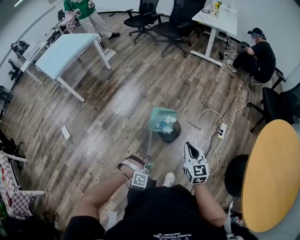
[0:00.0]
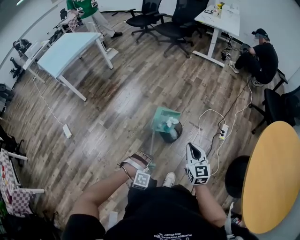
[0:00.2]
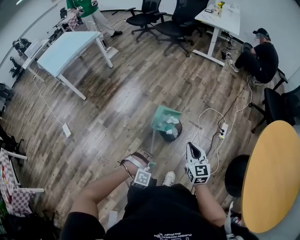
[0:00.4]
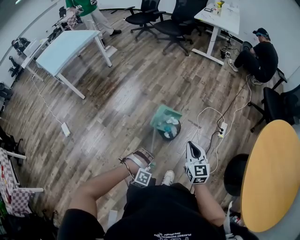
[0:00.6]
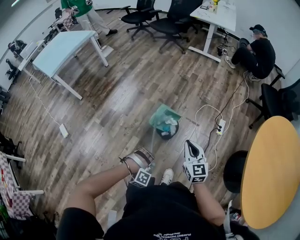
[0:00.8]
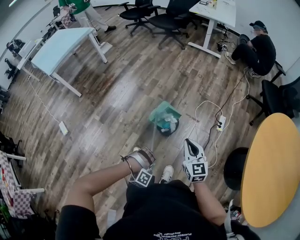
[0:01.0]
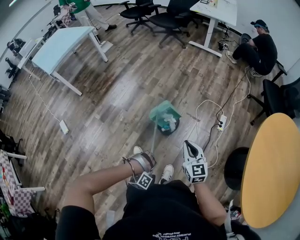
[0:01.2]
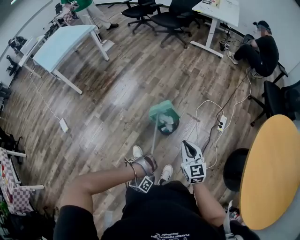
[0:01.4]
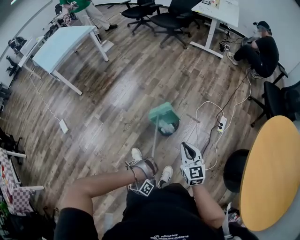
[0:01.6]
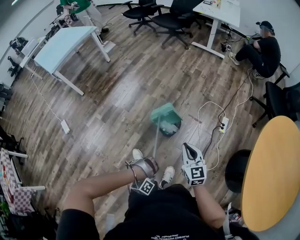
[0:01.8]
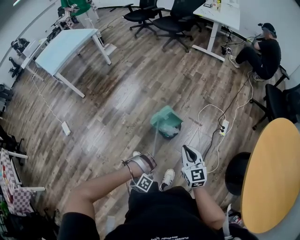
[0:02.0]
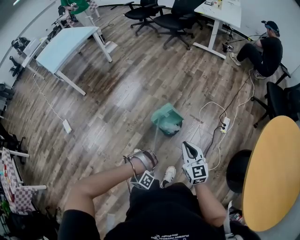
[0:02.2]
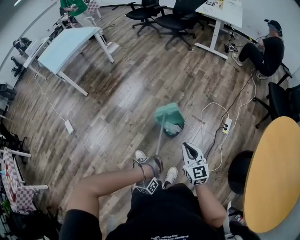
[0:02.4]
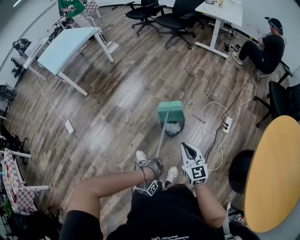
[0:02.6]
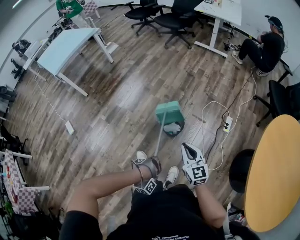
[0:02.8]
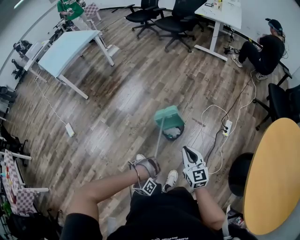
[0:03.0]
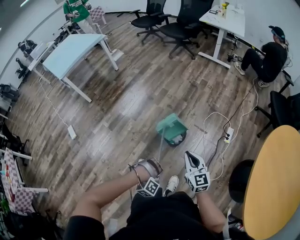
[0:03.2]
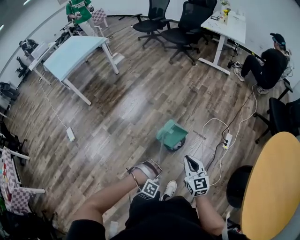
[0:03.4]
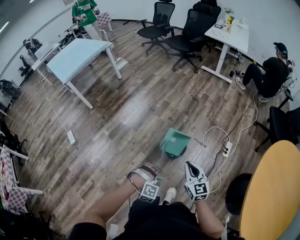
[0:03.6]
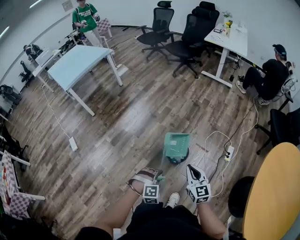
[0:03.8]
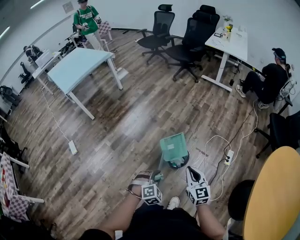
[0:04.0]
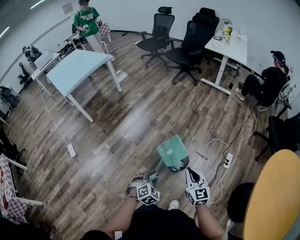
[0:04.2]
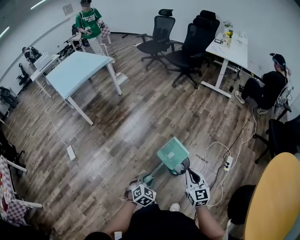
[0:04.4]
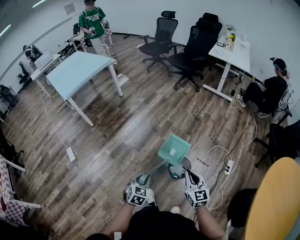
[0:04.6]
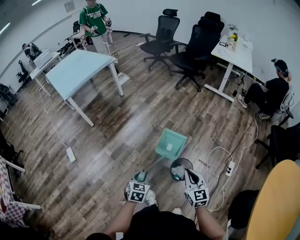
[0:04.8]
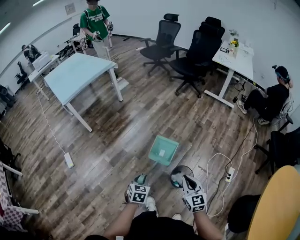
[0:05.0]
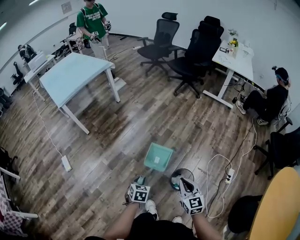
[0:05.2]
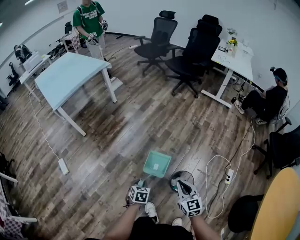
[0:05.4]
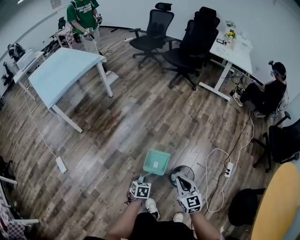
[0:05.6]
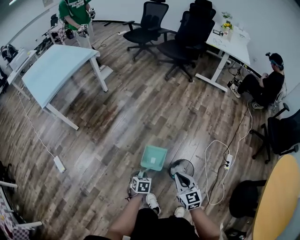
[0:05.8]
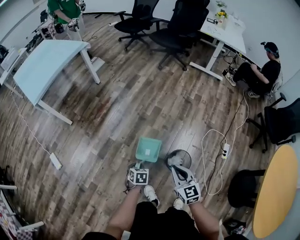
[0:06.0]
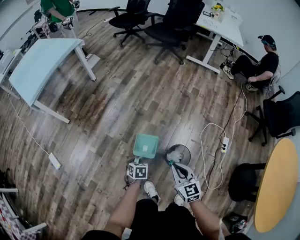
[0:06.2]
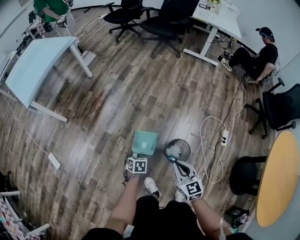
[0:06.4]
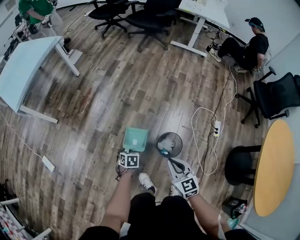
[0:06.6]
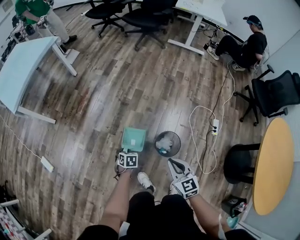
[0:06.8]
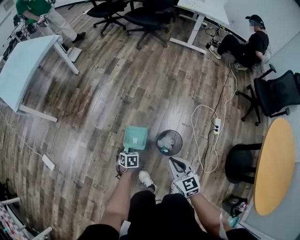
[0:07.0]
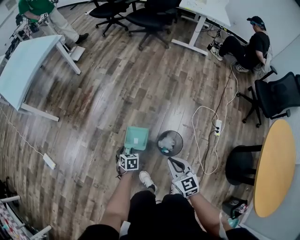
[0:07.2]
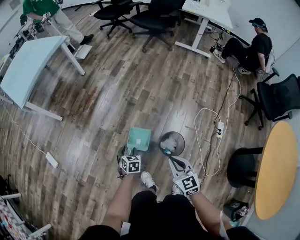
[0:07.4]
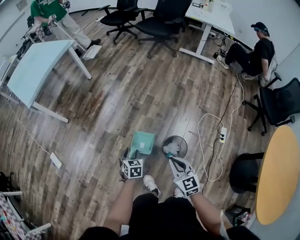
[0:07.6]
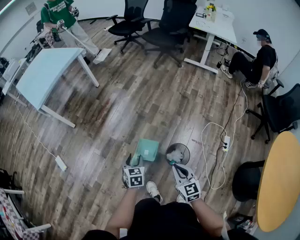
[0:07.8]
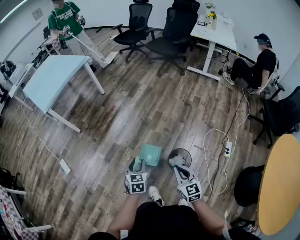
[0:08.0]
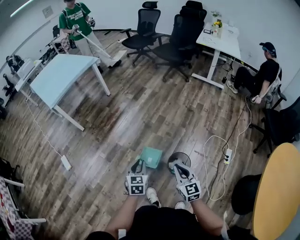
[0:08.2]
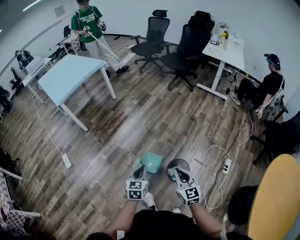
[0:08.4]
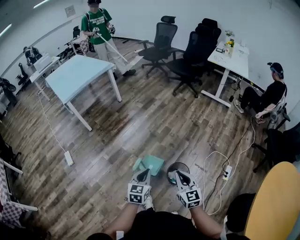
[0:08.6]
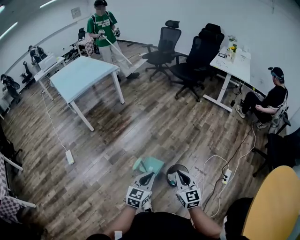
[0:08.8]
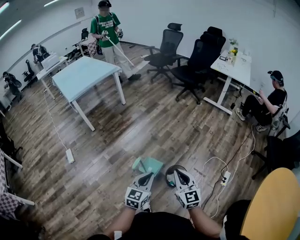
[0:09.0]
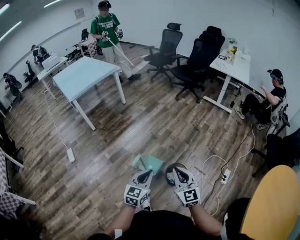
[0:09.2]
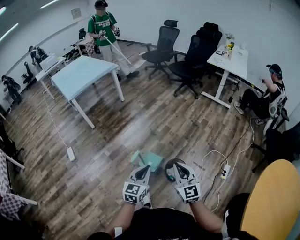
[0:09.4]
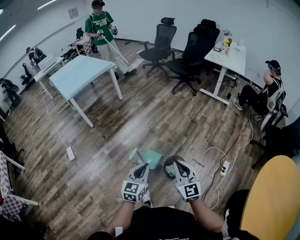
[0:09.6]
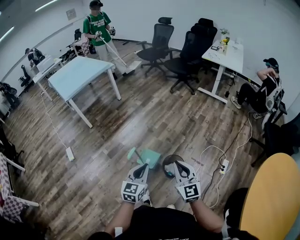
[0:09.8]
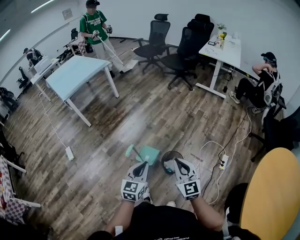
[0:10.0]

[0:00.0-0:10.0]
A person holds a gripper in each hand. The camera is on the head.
0:00.0 to 0:01.4: The left gripper moves downward and backward, roughly 10 cm, and rotates around the line of its fingers by about 40 degrees, clockwise from behind.
0:01.4 to 0:02.8: The grippers stay close to where they were, moving slightly.
0:02.8 to 0:04.2: The left gripper moves forward and upward, about 20 cm, and twists about 110 degrees counterclockwise, seen from behind, while the right gripper shifts about 10 cm forward.
0:04.2 to 0:05.8: Both grippers travel together forward, to the left and downward, approximately 30 cm. The left gripper rolls counterclockwise, seen from behind, by some 50 degrees.
0:05.8 to 0:07.2: The left gripper heads downward, covering about 5 cm, and opens up. Meanwhile the right gripper changes place by some 5 cm.
0:07.2 to 0:08.6: The right gripper travels upward and backward by roughly 15 cm; the left gripper travels upward and backward by approximately 35 cm, tilts its fingers some 40 degrees upward, and closes its fingers.
0:08.6 to 0:10.0: The right gripper heads upward, backward and to the right, covering roughly 10 cm, while the left gripper moves backward, upward and to the right, about 15 cm.

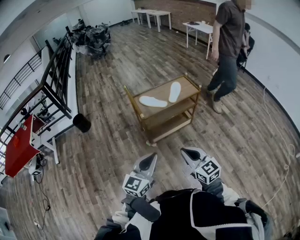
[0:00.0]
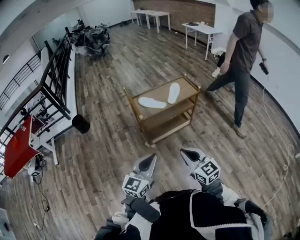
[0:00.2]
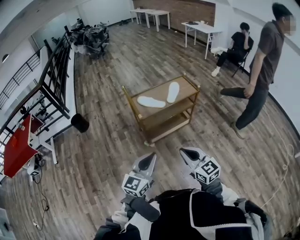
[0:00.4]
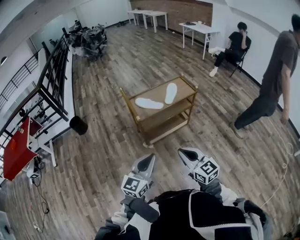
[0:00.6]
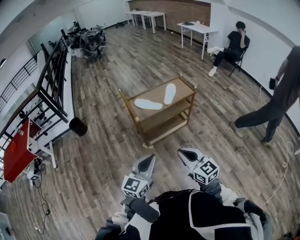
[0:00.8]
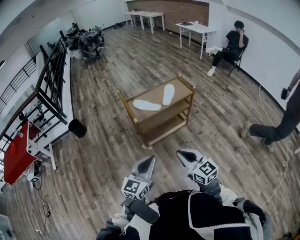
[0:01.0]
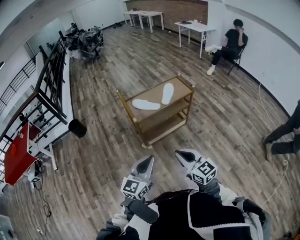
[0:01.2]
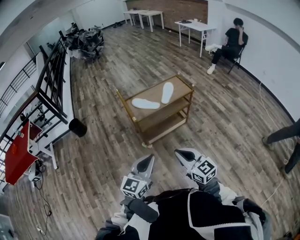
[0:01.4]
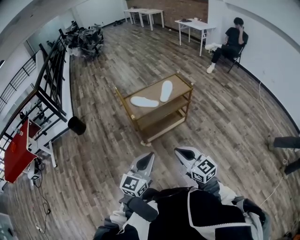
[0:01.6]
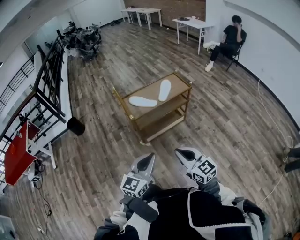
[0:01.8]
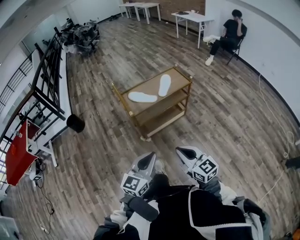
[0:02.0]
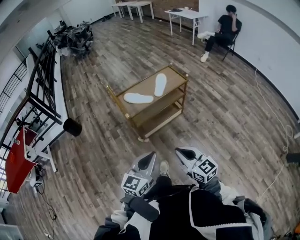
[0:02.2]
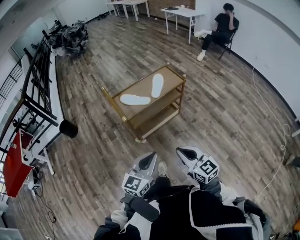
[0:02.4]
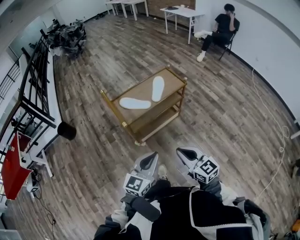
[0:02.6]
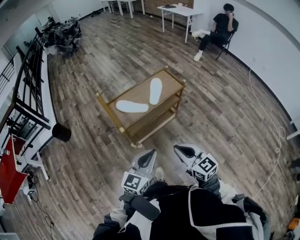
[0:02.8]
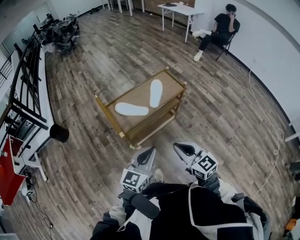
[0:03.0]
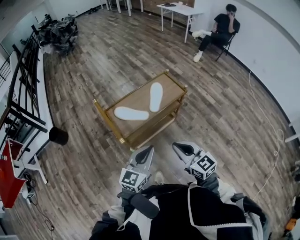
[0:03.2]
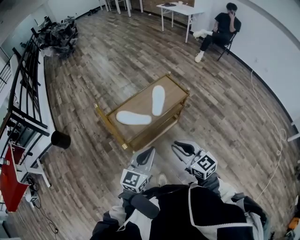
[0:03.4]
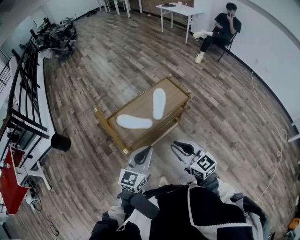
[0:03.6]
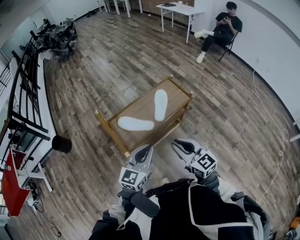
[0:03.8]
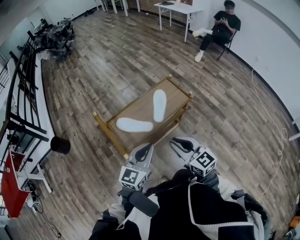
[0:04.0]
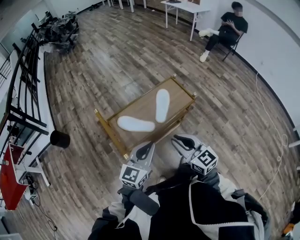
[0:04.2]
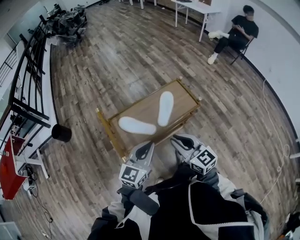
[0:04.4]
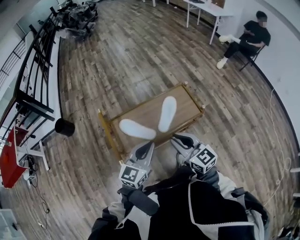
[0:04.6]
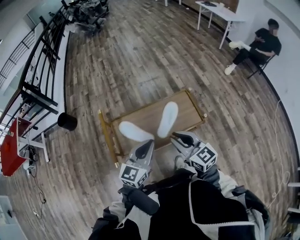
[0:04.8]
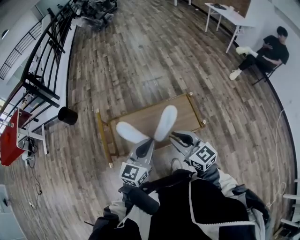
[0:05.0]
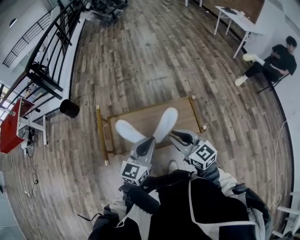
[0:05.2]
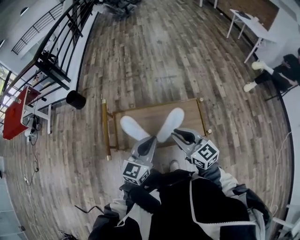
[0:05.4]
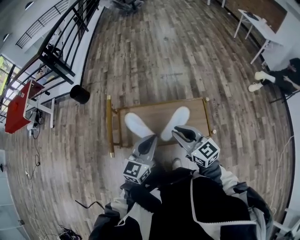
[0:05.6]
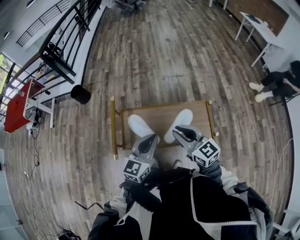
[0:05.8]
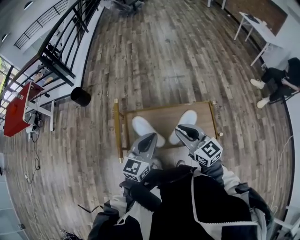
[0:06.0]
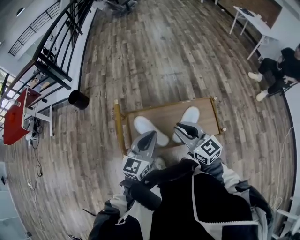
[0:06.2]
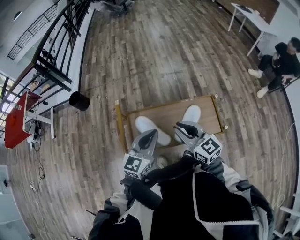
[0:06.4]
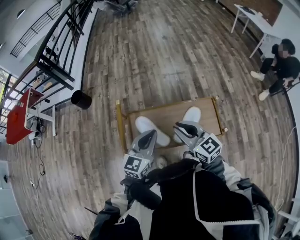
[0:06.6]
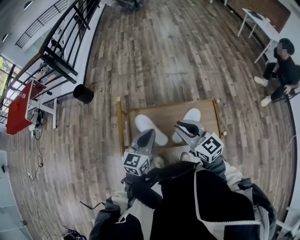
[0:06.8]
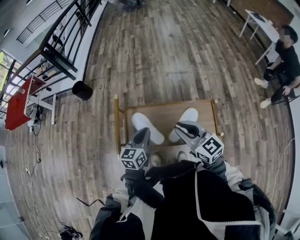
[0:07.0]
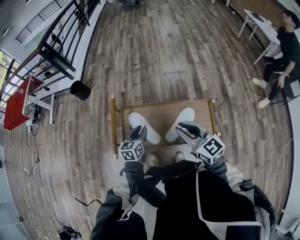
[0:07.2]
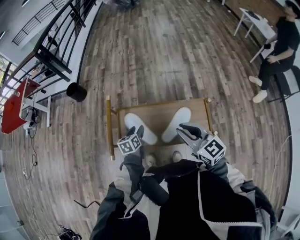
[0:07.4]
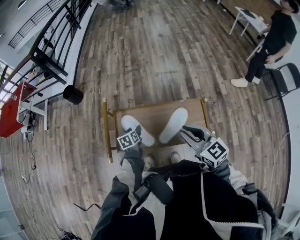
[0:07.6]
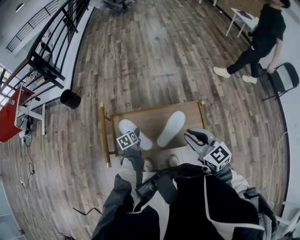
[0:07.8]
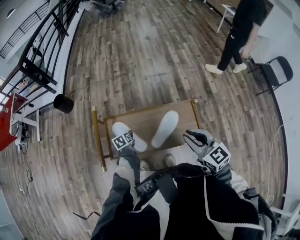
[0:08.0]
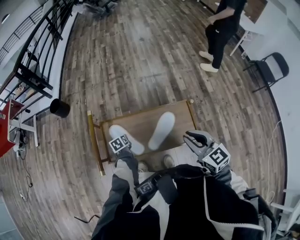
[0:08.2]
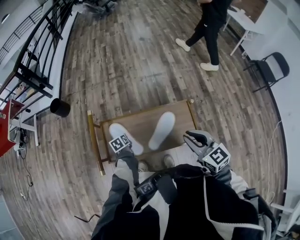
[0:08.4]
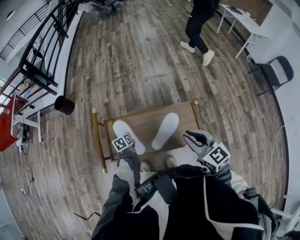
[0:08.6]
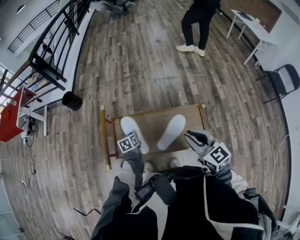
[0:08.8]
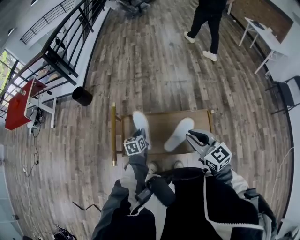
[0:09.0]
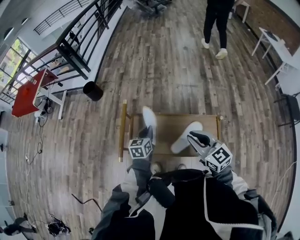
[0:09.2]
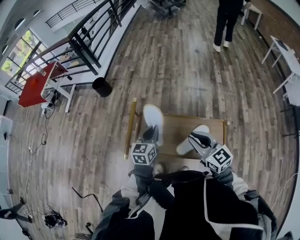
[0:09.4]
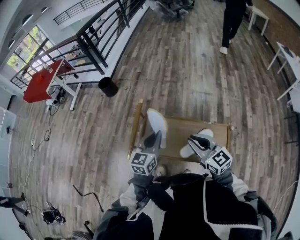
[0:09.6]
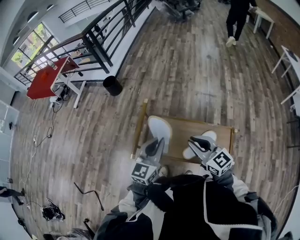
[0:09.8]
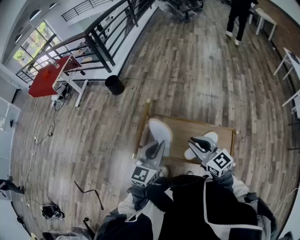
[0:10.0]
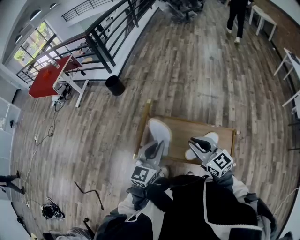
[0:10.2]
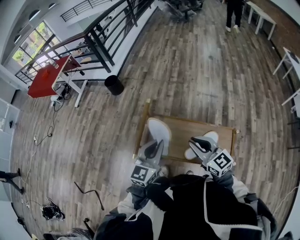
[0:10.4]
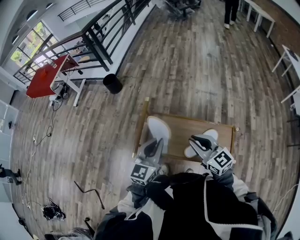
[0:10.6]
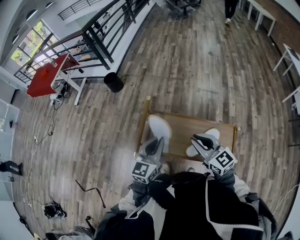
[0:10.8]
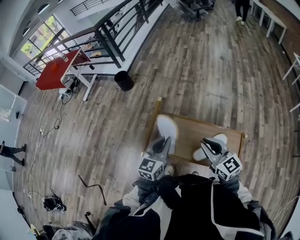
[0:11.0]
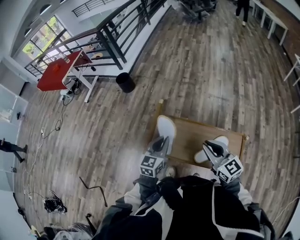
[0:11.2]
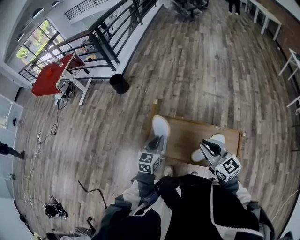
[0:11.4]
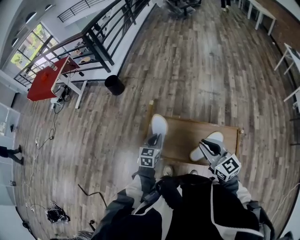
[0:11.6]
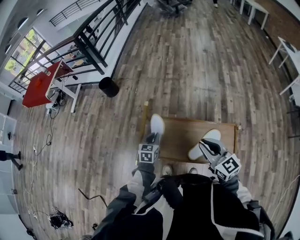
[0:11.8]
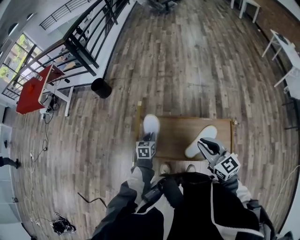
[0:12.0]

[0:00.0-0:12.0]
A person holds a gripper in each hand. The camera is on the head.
0:00.0 to 0:01.6: There are only small adjustments of the grippers.
0:01.6 to 0:03.0: Both grippers move forward, some 20 cm.
0:03.0 to 0:04.4: Both grippers move forward, some 20 cm.
0:04.4 to 0:06.0: The right gripper changes place by approximately 20 cm, and changes its angle by approximately 30 degrees. Meanwhile the left gripper shifts by approximately 15 cm, and rotates about 30 degrees.
0:06.0 to 0:07.6: The left gripper is displaced downward by roughly 30 cm, points its fingers approximately 40 degrees further downward, and opens its fingers, while the right gripper moves to the right, approximately 5 cm.
0:07.6 to 0:09.0: The left gripper is displaced upward by some 5 cm, and closes its fingers.
0:09.0 to 0:10.4: The left gripper moves upward and backward, about 25 cm, and tilts its fingers approximately 30 degrees upward. The right gripper is displaced to the left by roughly 10 cm.
0:10.4 to 0:12.0: The left gripper travels downward and forward by some 30 cm, and points its fingers approximately 40 degrees further downward.

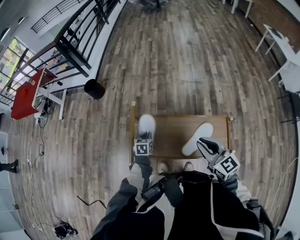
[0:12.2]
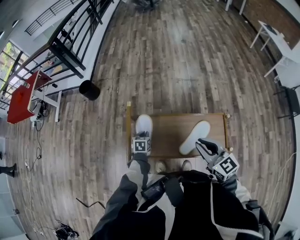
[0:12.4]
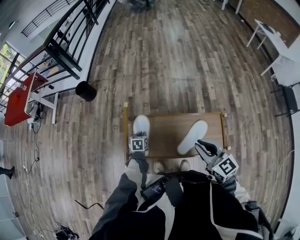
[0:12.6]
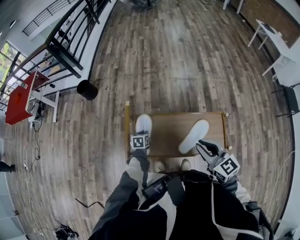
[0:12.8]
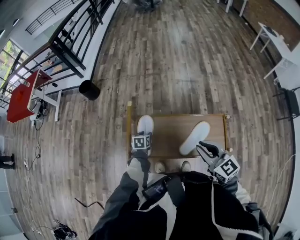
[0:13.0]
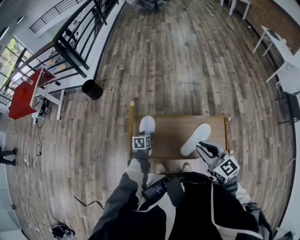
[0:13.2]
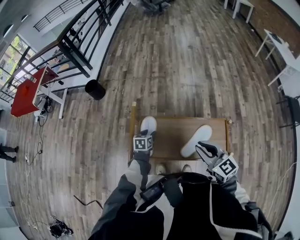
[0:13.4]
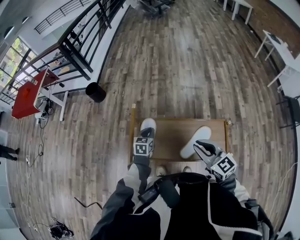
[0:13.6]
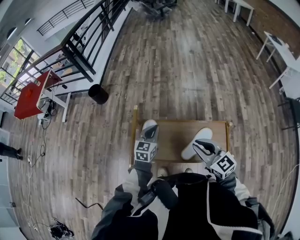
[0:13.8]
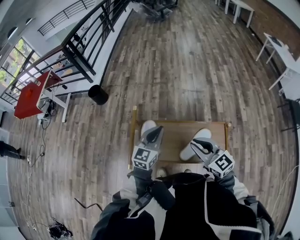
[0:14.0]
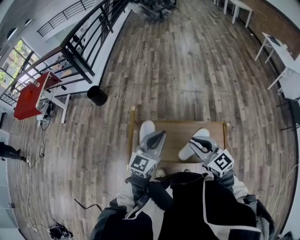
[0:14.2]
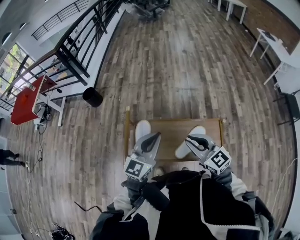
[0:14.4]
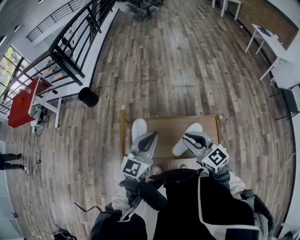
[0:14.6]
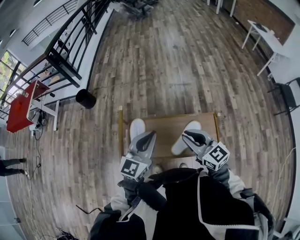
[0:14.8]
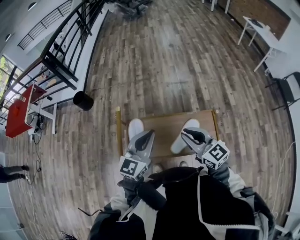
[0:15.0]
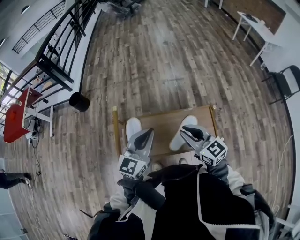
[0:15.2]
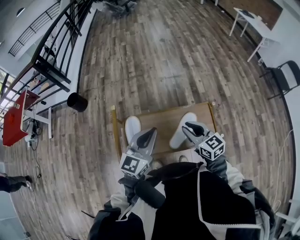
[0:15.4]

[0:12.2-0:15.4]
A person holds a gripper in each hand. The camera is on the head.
0:12.2 to 0:13.8: The left gripper shifts about 15 cm upward and to the right, swivels approximately 30 degrees, and opens, then closes once more.
0:13.8 to 0:15.4: The right gripper changes place by about 5 cm, while the left gripper moves upward, backward and to the right, about 20 cm, and rotates roughly 30 degrees.
